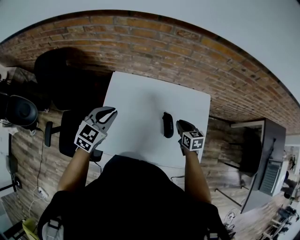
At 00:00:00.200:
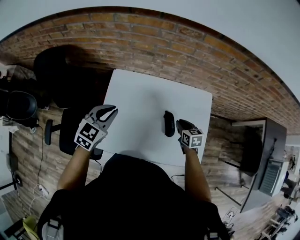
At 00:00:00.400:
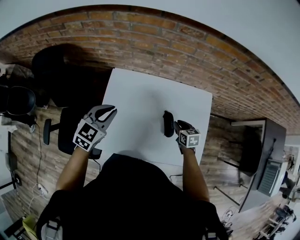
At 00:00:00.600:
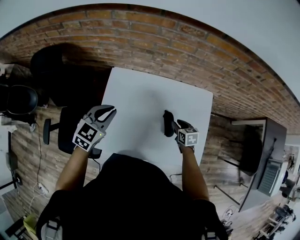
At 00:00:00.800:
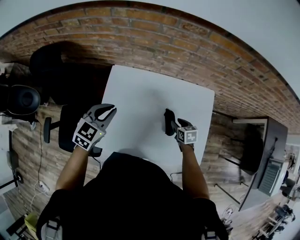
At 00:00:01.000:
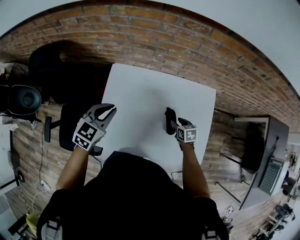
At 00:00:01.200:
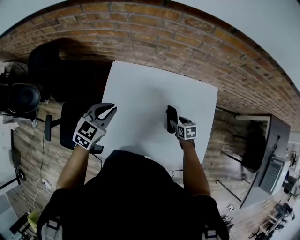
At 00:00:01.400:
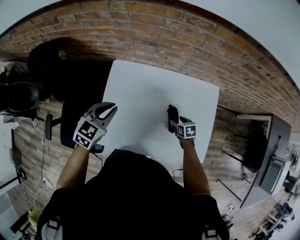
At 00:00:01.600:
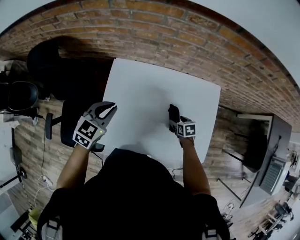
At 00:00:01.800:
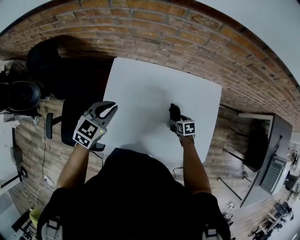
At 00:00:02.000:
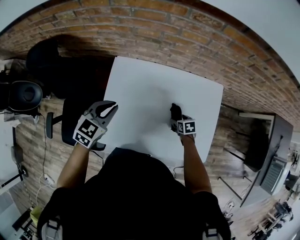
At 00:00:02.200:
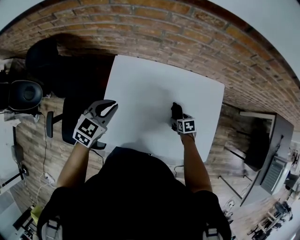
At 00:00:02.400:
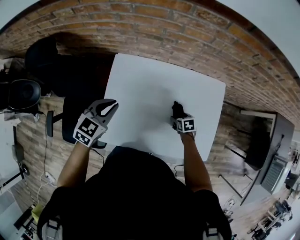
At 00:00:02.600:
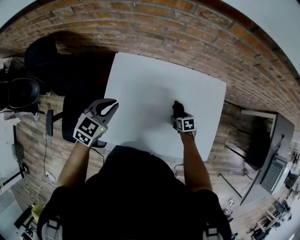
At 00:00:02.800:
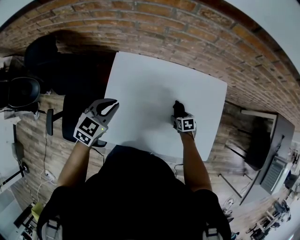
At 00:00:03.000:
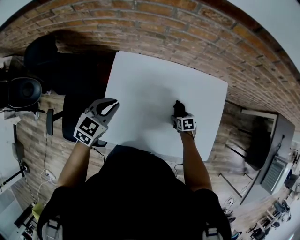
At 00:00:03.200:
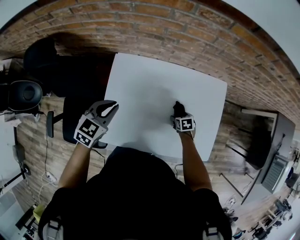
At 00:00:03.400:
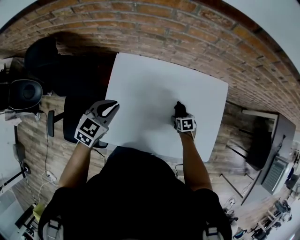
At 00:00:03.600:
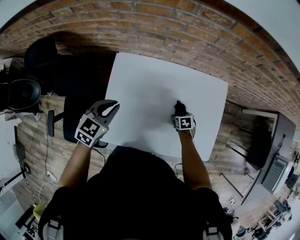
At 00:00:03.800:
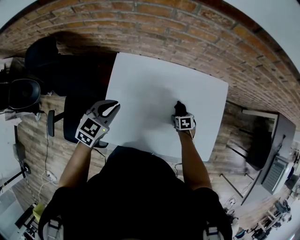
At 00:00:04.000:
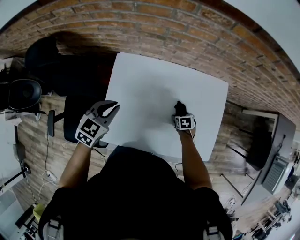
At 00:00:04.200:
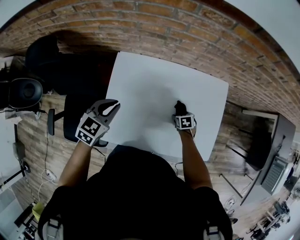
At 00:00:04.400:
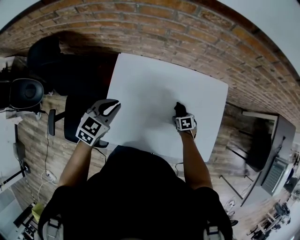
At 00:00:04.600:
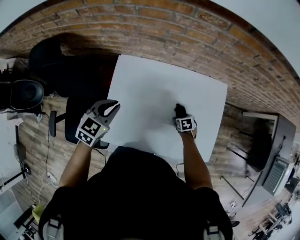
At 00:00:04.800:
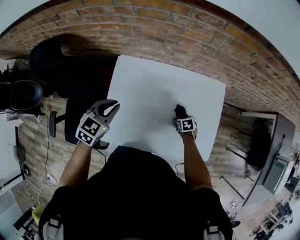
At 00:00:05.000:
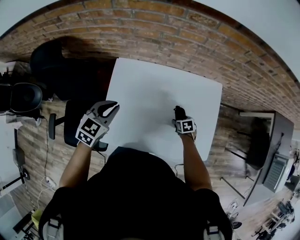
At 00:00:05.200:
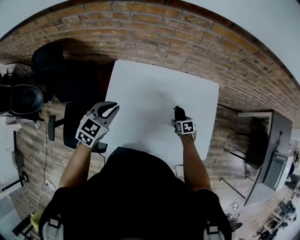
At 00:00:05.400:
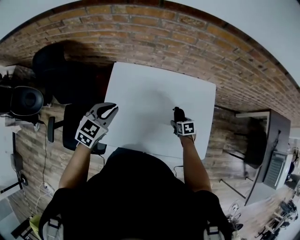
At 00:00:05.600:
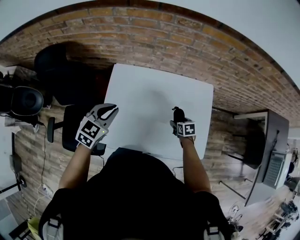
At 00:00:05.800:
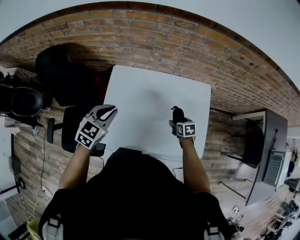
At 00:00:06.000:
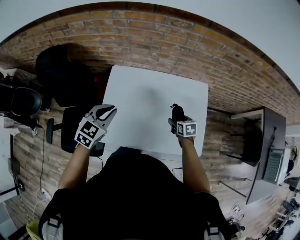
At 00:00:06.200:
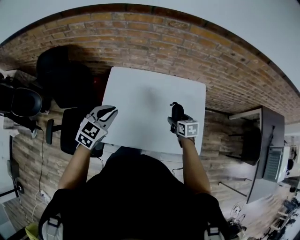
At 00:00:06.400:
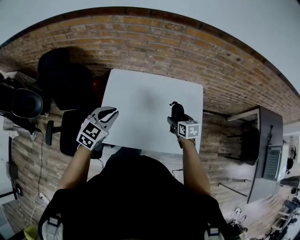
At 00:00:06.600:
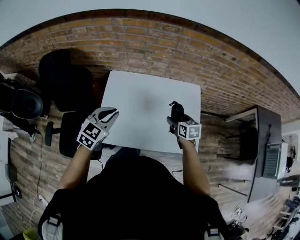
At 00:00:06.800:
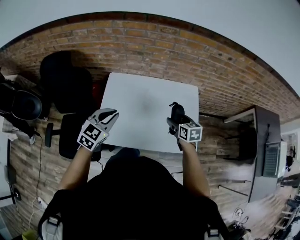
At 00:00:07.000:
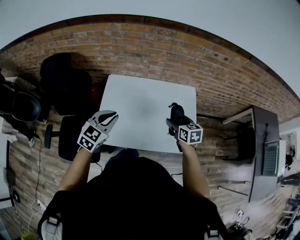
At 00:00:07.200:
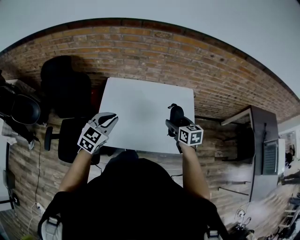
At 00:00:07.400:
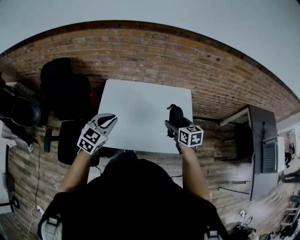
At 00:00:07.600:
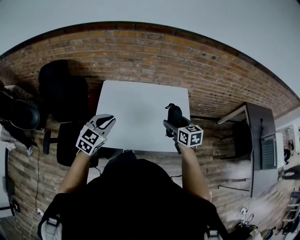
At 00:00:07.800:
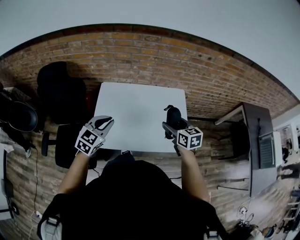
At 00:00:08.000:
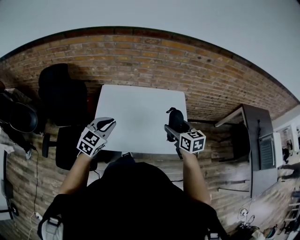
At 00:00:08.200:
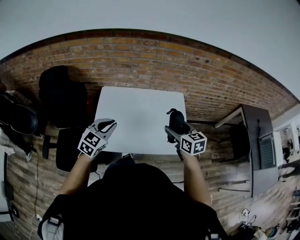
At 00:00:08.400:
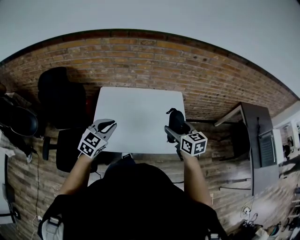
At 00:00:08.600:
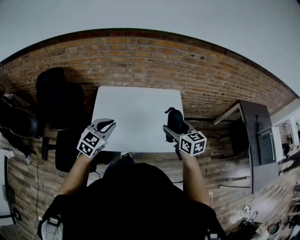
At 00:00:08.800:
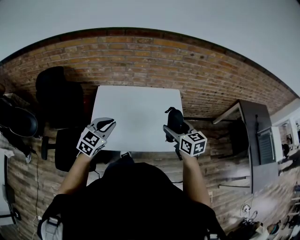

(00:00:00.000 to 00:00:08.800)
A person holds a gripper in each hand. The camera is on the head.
00:00:00.000 - 00:00:01.400: The right gripper shifts some 15 cm downward, and opens up; the left gripper moves downward, approximately 5 cm.
00:00:01.400 - 00:00:03.000: The right gripper goes approximately 5 cm downward.
00:00:03.000 - 00:00:04.400: The grippers stay close to where they were, moving slightly.
00:00:04.400 - 00:00:05.800: The left gripper travels backward and upward by some 10 cm. Meanwhile the right gripper shifts roughly 15 cm upward.
00:00:05.800 - 00:00:07.400: The left gripper travels backward, upward and to the right by approximately 15 cm. The right gripper goes some 25 cm upward and backward, and changes its angle by roughly 30 degrees.
00:00:07.400 - 00:00:08.800: The right gripper is displaced upward and backward by some 10 cm, while the left gripper changes place by roughly 5 cm.

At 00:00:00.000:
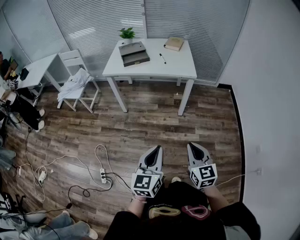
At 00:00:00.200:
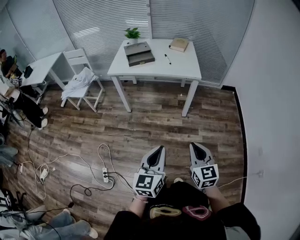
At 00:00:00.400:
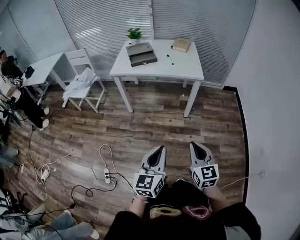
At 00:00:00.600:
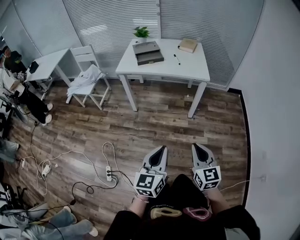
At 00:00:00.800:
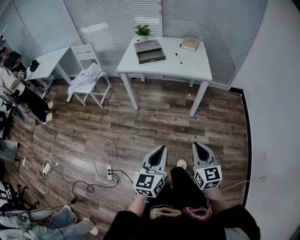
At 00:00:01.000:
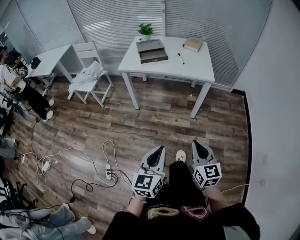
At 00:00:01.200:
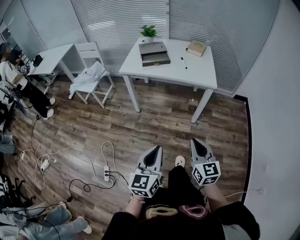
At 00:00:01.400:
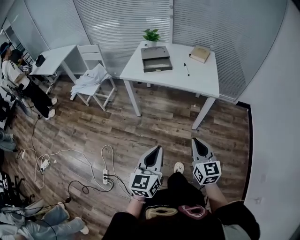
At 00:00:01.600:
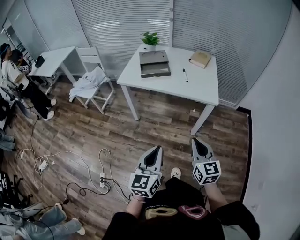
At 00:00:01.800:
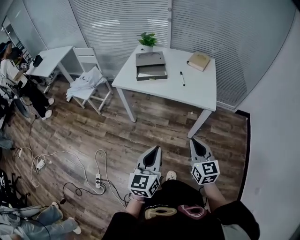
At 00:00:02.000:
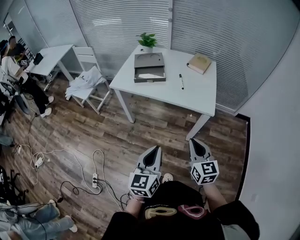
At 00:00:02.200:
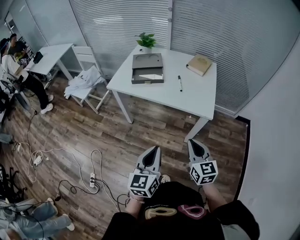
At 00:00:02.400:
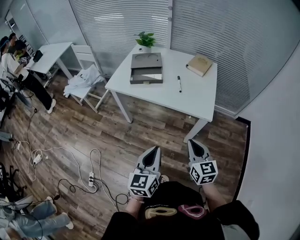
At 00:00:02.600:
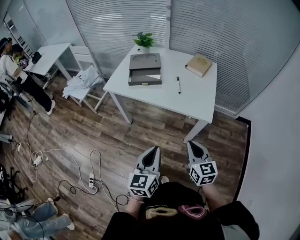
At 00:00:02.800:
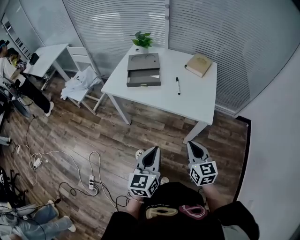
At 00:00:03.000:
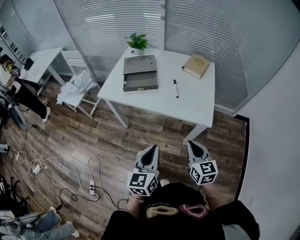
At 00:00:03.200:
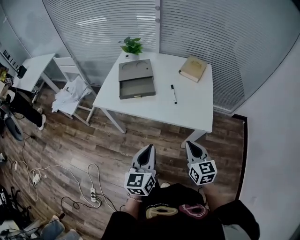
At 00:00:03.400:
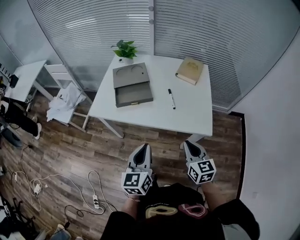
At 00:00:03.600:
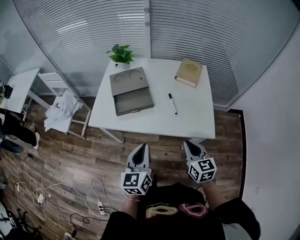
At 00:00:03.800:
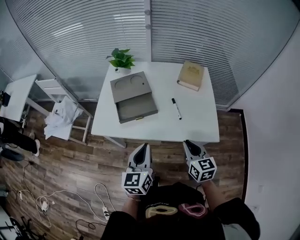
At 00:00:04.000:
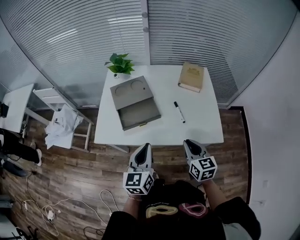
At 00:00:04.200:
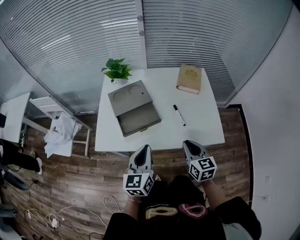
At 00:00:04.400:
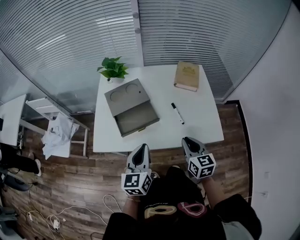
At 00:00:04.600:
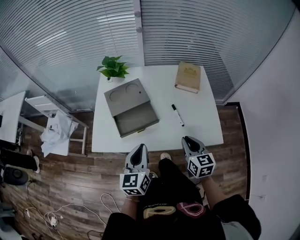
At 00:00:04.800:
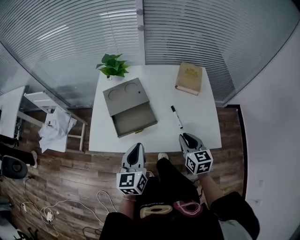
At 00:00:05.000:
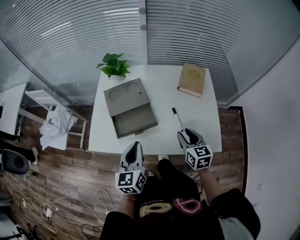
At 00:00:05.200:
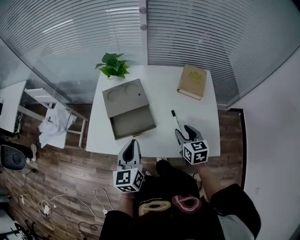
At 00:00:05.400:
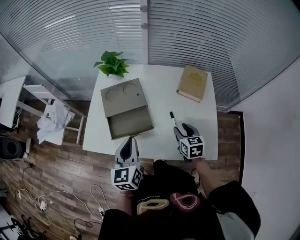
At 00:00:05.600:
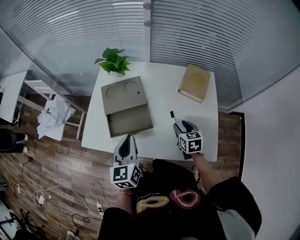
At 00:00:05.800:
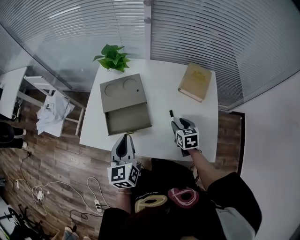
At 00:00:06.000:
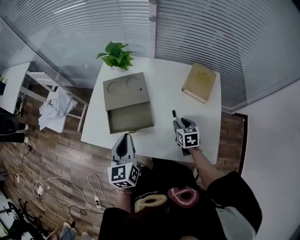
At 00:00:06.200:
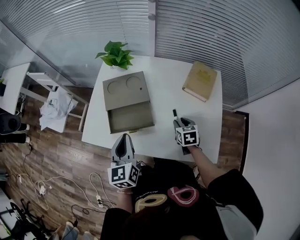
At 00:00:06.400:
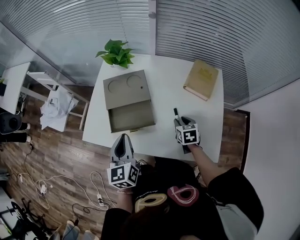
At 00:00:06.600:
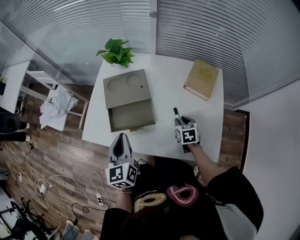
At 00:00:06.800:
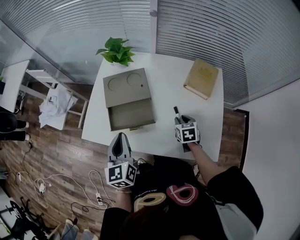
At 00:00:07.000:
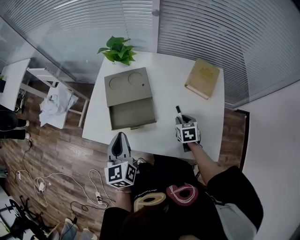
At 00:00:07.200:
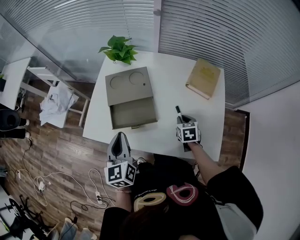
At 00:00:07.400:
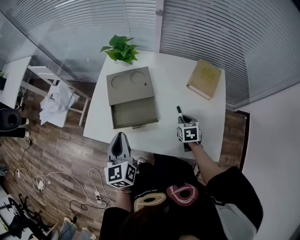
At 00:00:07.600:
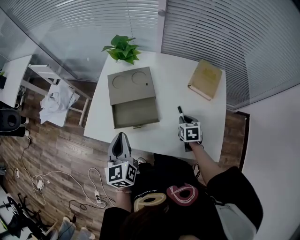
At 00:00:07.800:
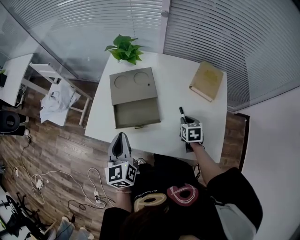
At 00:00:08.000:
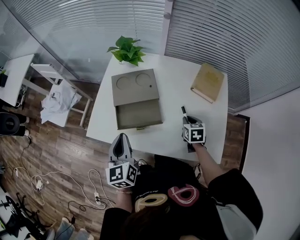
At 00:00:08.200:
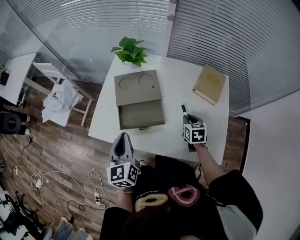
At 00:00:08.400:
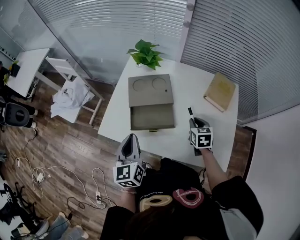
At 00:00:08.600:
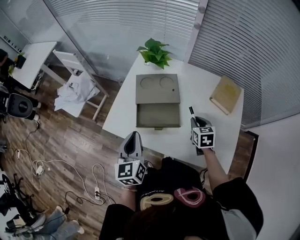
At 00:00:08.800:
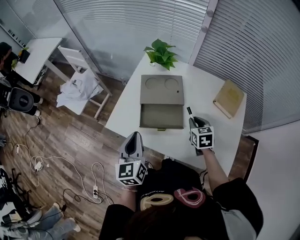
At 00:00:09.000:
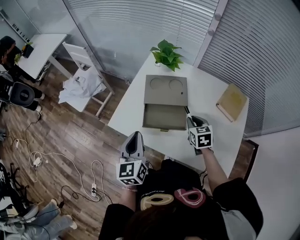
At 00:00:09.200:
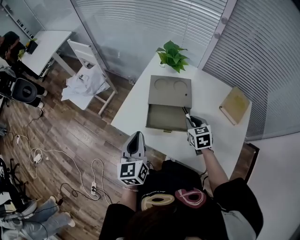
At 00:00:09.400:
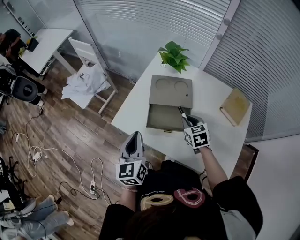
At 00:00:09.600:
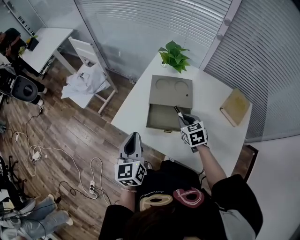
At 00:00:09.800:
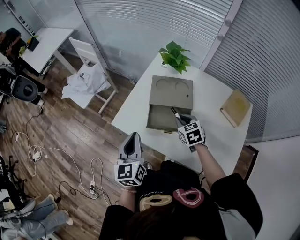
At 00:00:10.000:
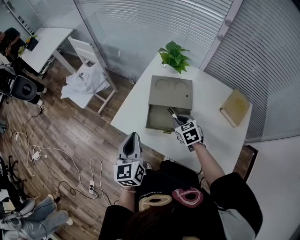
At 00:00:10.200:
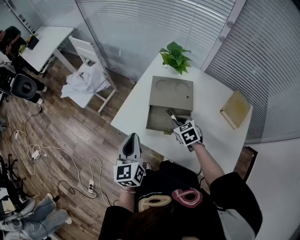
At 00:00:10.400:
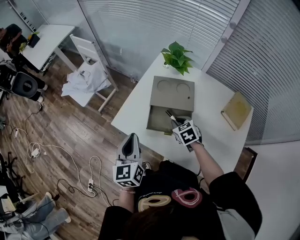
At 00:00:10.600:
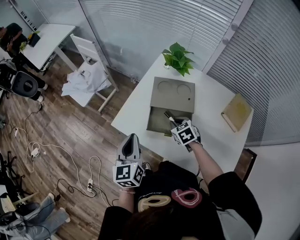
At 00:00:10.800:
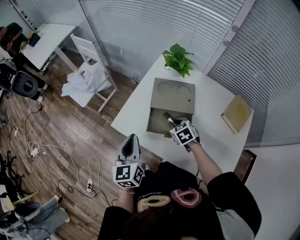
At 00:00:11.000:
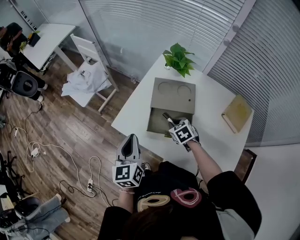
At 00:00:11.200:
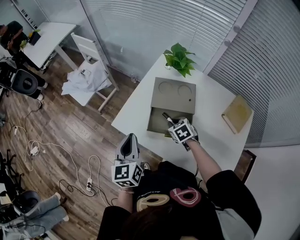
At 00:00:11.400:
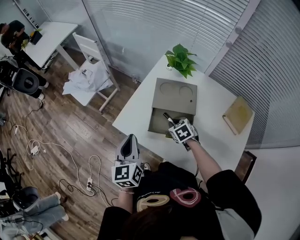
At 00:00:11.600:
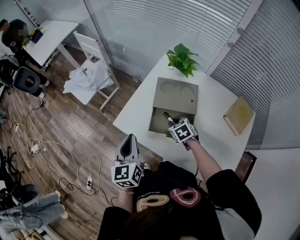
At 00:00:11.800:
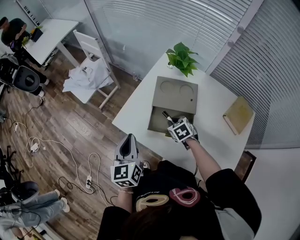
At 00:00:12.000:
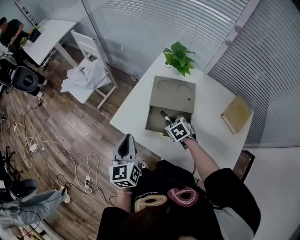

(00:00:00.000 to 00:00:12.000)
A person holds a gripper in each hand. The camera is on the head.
00:00:00.000 - 00:00:01.600: Both grippers move forward, about 20 cm.
00:00:01.600 - 00:00:03.000: The grippers both shift forward and to the right by approximately 20 cm.
00:00:03.000 - 00:00:04.400: The grippers both shift forward and to the left by approximately 25 cm.
00:00:04.400 - 00:00:06.000: The right gripper heads forward and downward, covering approximately 25 cm, rotates about 30 degrees, and opens its fingers, while the left gripper shifts approximately 10 cm forward, and swivels approximately 20 degrees.
00:00:06.000 - 00:00:07.600: The right gripper closes.
00:00:07.600 - 00:00:09.000: The right gripper heads to the left, upward and forward, covering roughly 15 cm, and rotates roughly 20 degrees. The left gripper shifts roughly 5 cm to the left.
00:00:09.000 - 00:00:10.400: The right gripper goes some 10 cm to the left, and turns by about 20 degrees.
00:00:10.400 - 00:00:12.000: There are only small adjustments of the grippers.

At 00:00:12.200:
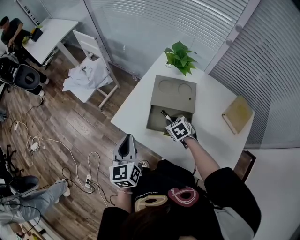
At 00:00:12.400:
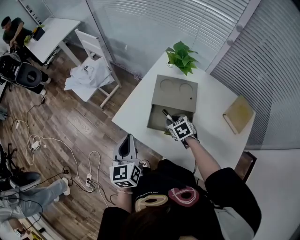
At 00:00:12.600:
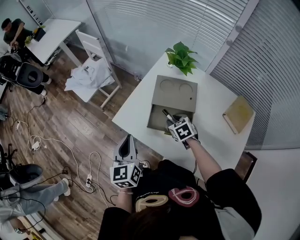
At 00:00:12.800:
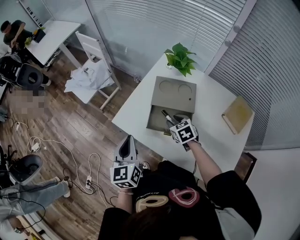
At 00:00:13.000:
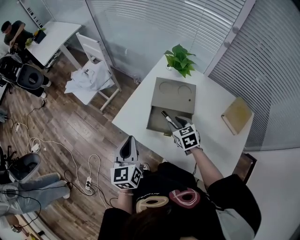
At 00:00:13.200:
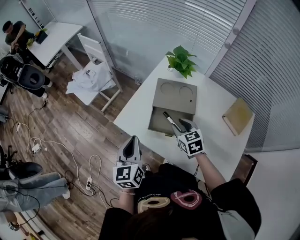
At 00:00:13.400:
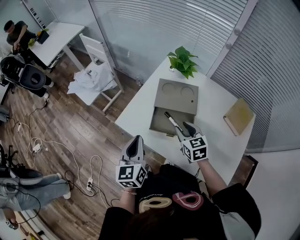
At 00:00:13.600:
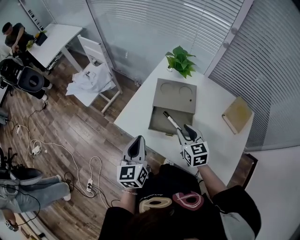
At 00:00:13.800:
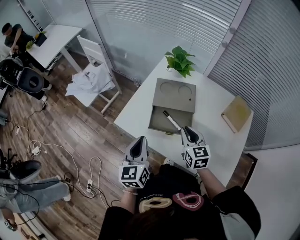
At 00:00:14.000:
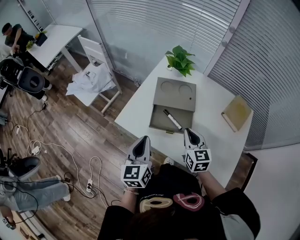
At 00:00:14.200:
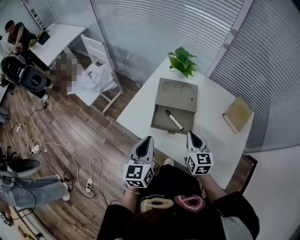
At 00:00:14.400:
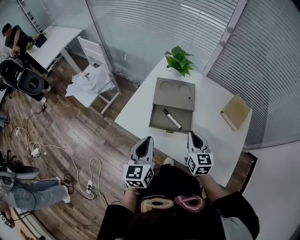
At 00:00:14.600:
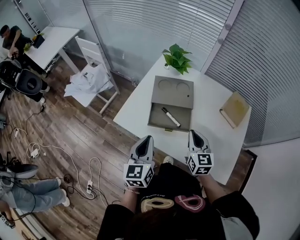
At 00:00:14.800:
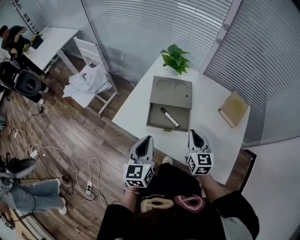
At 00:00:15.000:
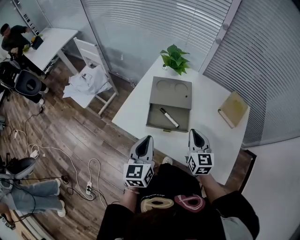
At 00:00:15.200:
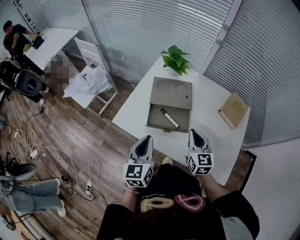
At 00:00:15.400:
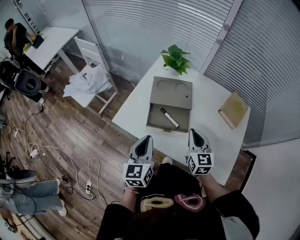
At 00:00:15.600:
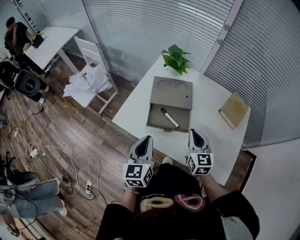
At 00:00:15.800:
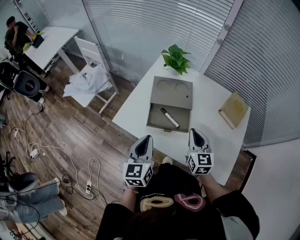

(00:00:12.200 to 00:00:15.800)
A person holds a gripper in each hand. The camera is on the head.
00:00:12.200 - 00:00:14.000: The left gripper ends up approximately 5 cm from where it was. The right gripper heads upward and backward, covering roughly 15 cm, angles its fingers upward, by some 30 degrees, and opens, then closes once more.
00:00:14.000 - 00:00:15.800: The grippers make only small movements.
